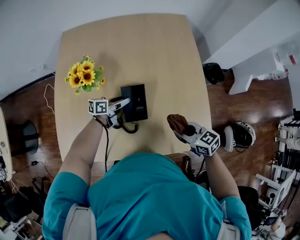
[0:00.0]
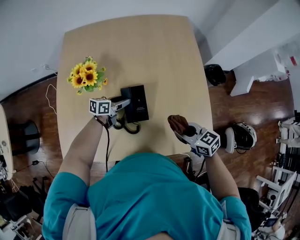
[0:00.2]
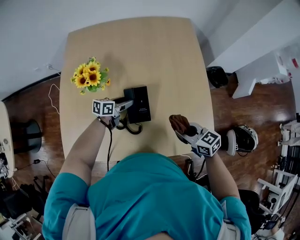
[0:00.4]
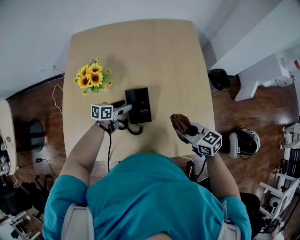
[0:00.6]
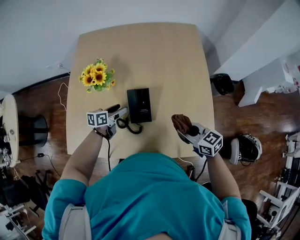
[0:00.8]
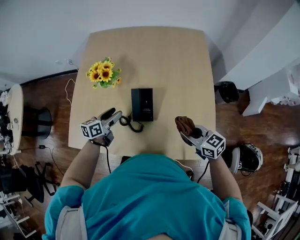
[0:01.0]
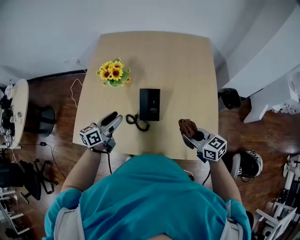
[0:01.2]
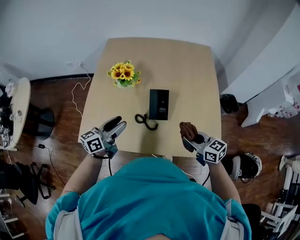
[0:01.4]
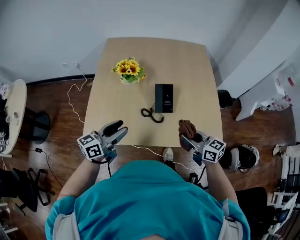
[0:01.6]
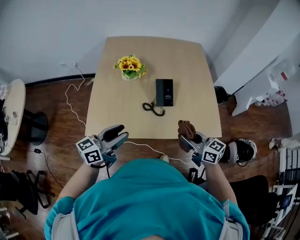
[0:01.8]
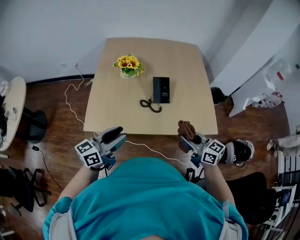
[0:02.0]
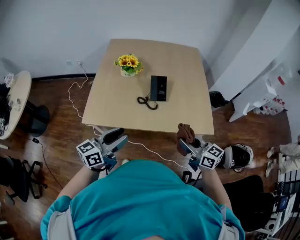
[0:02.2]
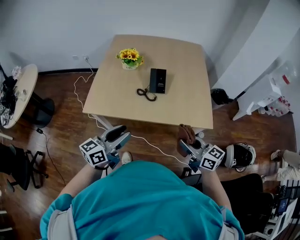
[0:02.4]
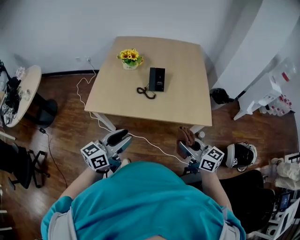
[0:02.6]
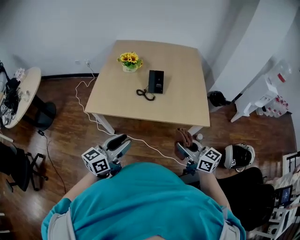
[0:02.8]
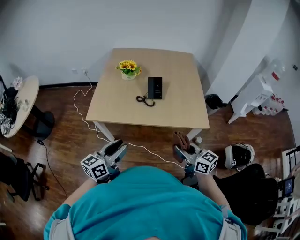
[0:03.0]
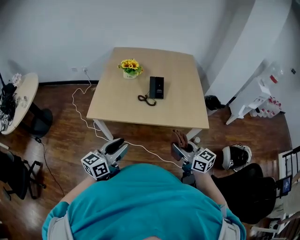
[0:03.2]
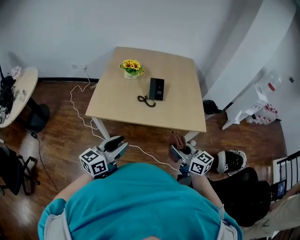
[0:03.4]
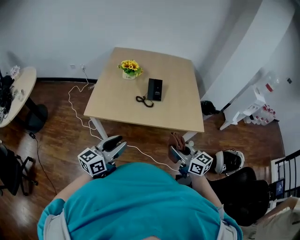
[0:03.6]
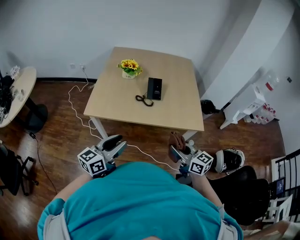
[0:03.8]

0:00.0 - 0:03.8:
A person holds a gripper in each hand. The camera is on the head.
0:00.0 - 0:01.2: The left gripper heads upward, backward and to the left, covering approximately 25 cm, and swivels about 30 degrees.
0:01.2 - 0:02.6: The grippers both shift backward by some 35 cm.
0:02.6 - 0:03.8: The grippers both shift to the left by approximately 5 cm.

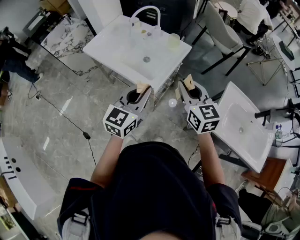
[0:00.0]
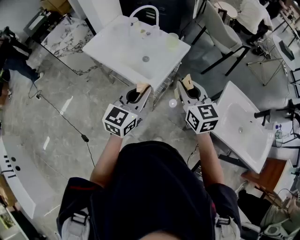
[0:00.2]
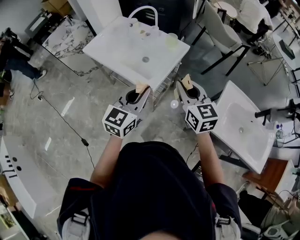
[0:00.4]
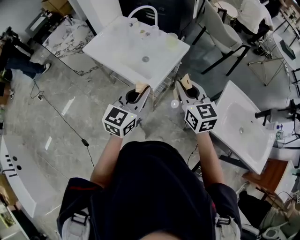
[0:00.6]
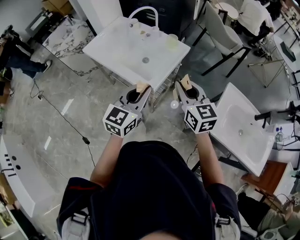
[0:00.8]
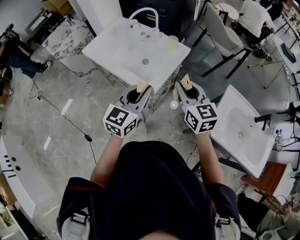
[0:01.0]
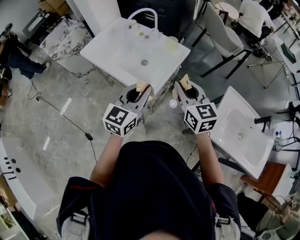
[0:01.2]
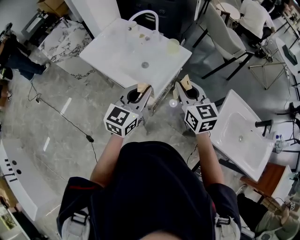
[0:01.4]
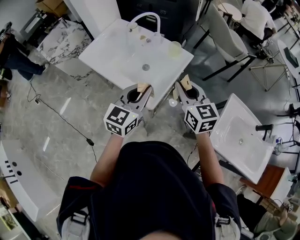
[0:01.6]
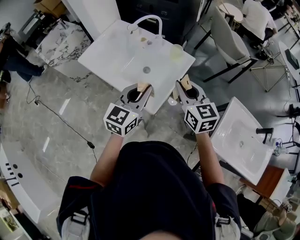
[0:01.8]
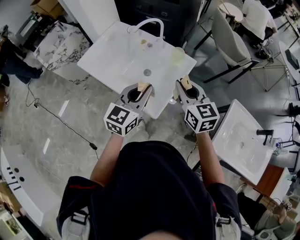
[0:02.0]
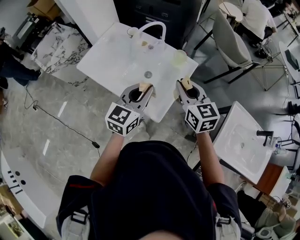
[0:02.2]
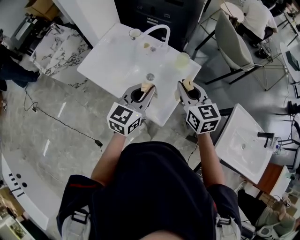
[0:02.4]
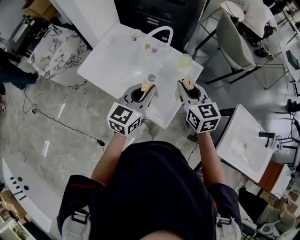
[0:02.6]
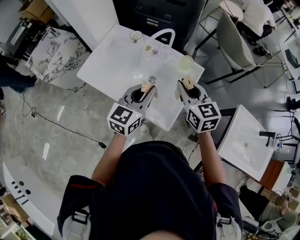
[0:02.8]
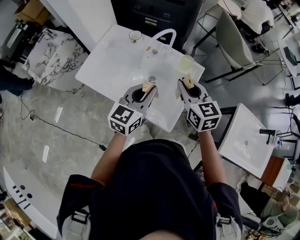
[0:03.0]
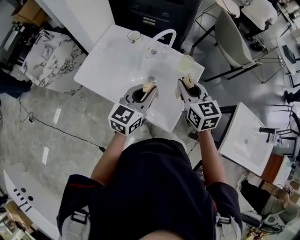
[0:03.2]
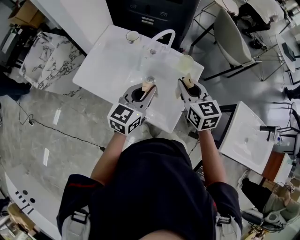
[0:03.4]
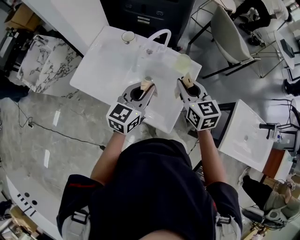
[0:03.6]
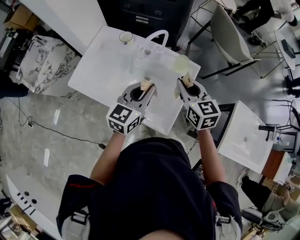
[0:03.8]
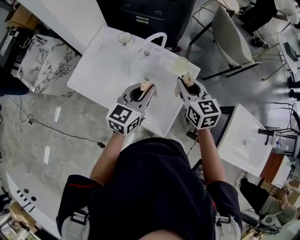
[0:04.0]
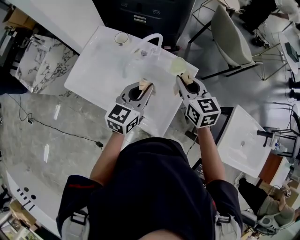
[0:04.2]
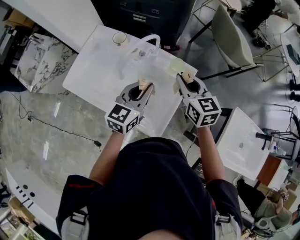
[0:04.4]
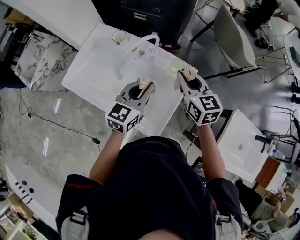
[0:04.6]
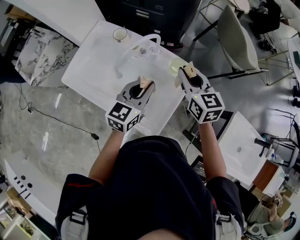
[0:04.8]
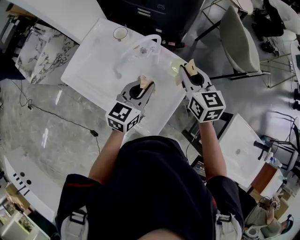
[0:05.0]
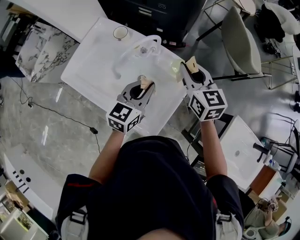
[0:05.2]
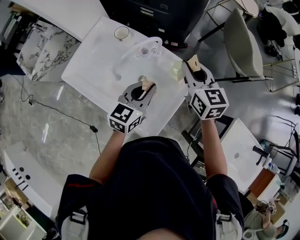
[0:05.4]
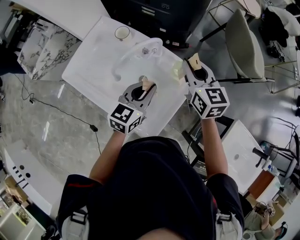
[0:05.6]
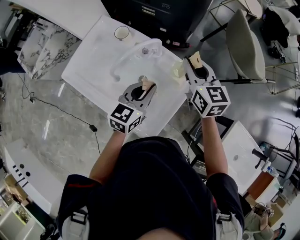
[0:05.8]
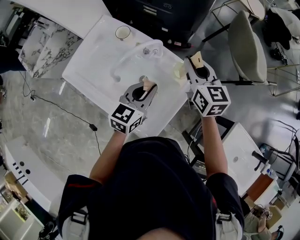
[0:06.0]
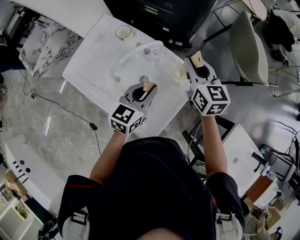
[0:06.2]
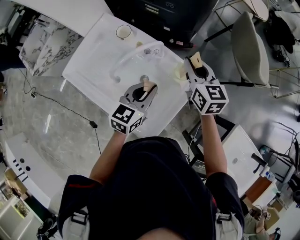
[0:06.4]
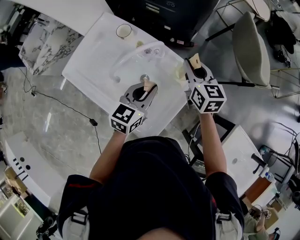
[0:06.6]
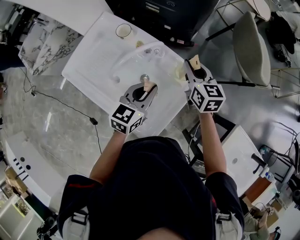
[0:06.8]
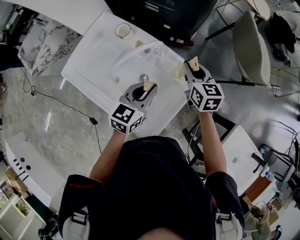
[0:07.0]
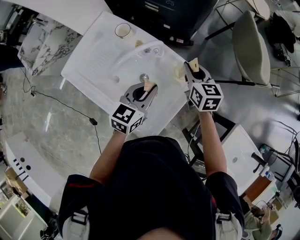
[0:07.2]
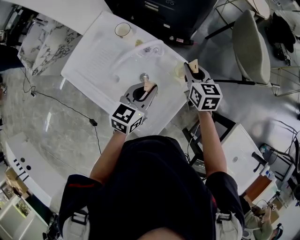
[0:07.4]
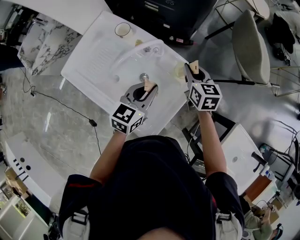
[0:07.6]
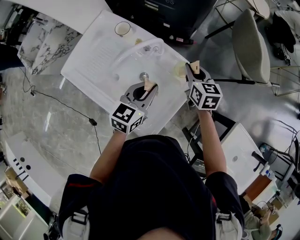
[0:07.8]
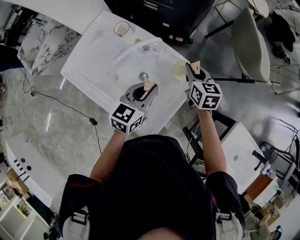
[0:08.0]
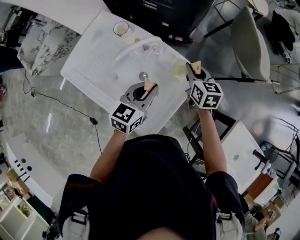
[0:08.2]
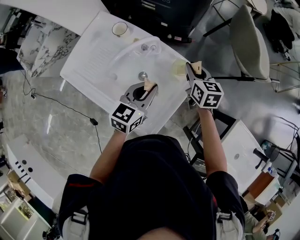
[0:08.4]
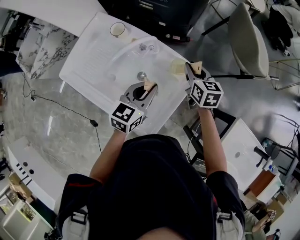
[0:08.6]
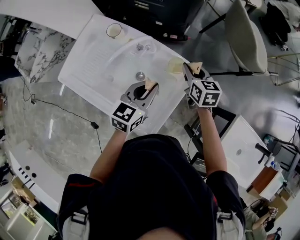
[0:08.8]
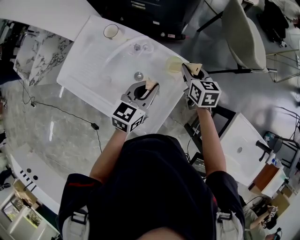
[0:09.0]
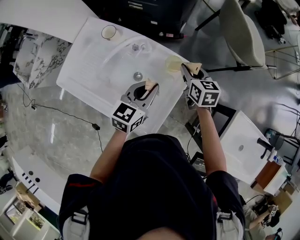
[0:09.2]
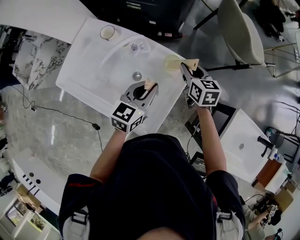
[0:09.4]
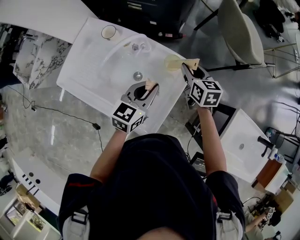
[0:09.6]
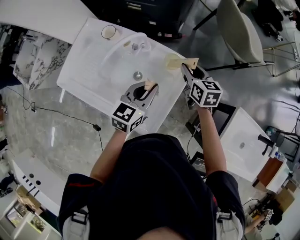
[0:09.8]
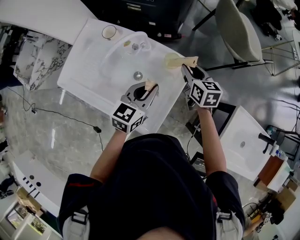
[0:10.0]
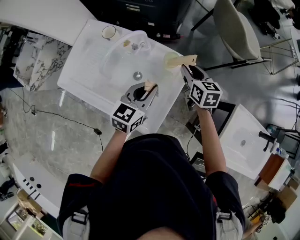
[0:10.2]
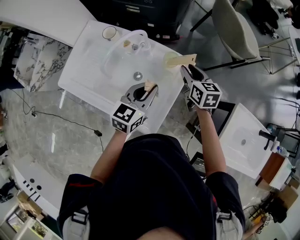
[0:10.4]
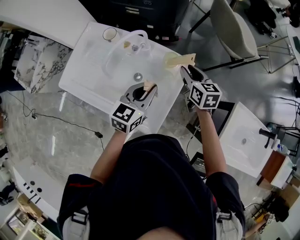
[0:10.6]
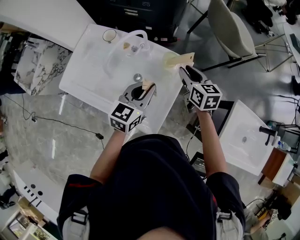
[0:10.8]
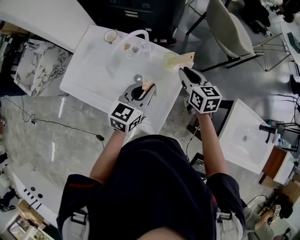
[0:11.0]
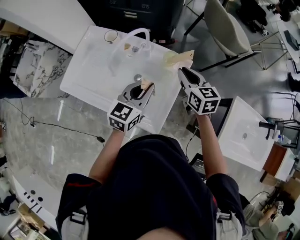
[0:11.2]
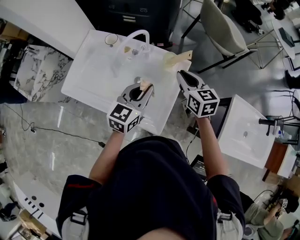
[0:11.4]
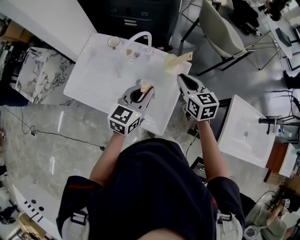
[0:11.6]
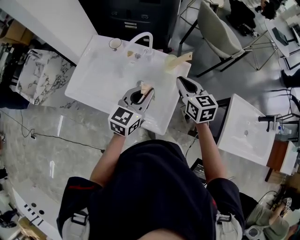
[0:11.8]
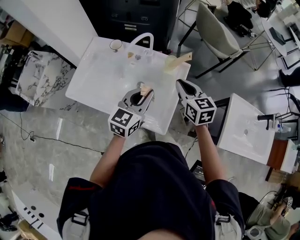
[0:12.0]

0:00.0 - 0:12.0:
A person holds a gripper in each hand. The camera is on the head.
0:00.0 - 0:01.6: Both grippers travel together forward, approximately 10 cm.
0:01.6 - 0:03.0: The grippers both shift forward and to the left by about 20 cm.
0:03.0 - 0:04.4: The right gripper moves forward and to the right, approximately 10 cm. Meanwhile the left gripper heads forward, covering roughly 10 cm.
0:04.4 - 0:06.0: The left gripper changes place by some 5 cm; the right gripper goes approximately 10 cm forward.
0:06.0 - 0:07.6: The right gripper shifts approximately 10 cm downward.
0:07.6 - 0:09.0: The grippers make only small movements.
0:09.0 - 0:10.4: The grippers move only a little.
0:10.4 - 0:12.0: The left gripper shifts some 10 cm backward, upward and to the left, while the right gripper shifts roughly 15 cm backward and upward, and closes up.

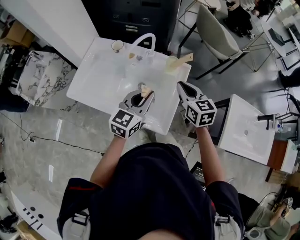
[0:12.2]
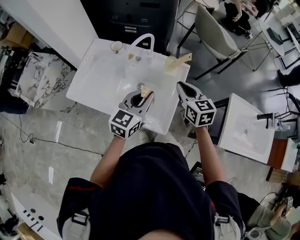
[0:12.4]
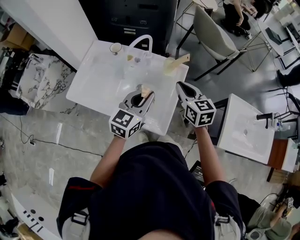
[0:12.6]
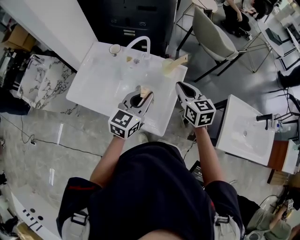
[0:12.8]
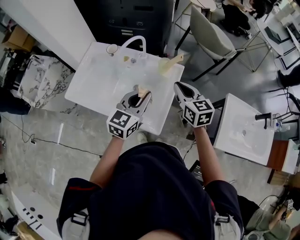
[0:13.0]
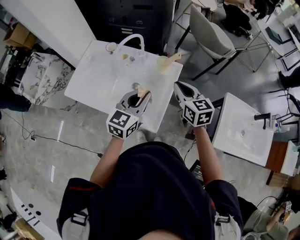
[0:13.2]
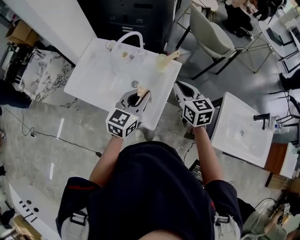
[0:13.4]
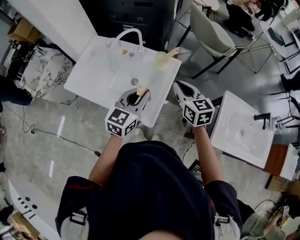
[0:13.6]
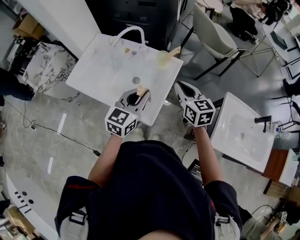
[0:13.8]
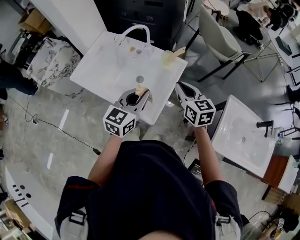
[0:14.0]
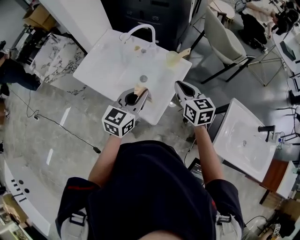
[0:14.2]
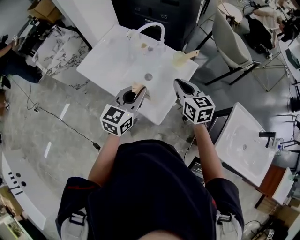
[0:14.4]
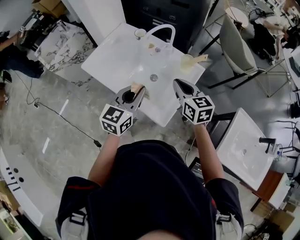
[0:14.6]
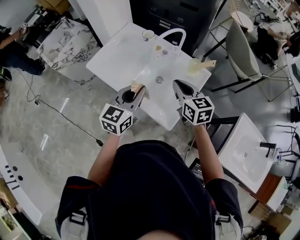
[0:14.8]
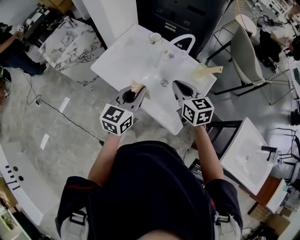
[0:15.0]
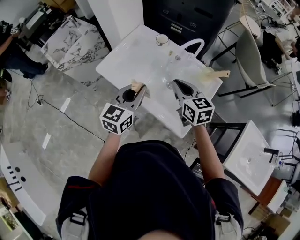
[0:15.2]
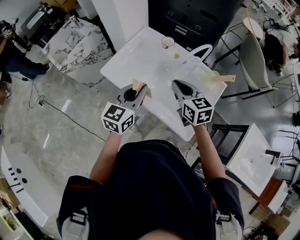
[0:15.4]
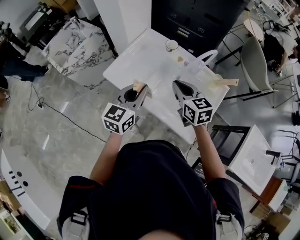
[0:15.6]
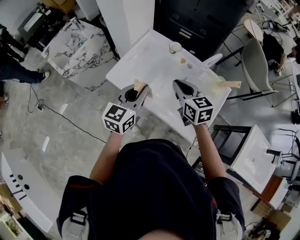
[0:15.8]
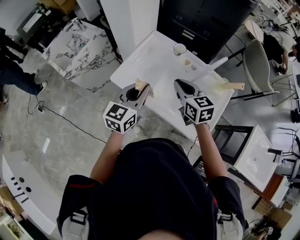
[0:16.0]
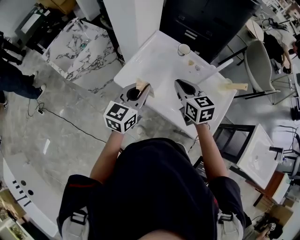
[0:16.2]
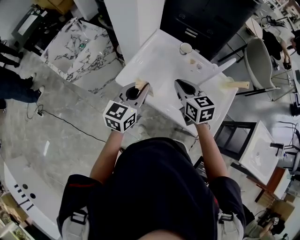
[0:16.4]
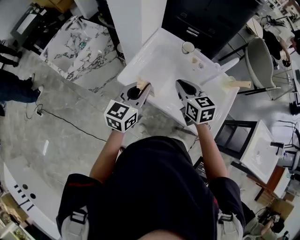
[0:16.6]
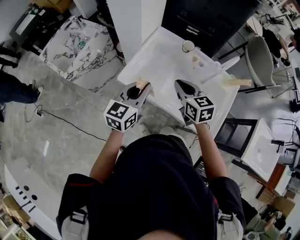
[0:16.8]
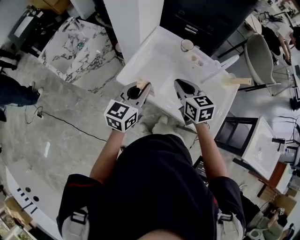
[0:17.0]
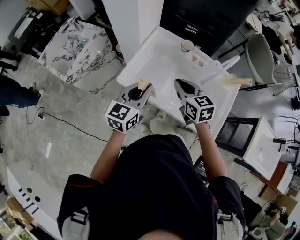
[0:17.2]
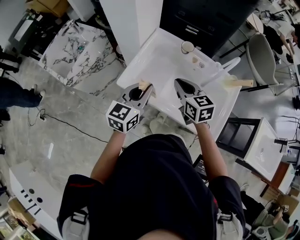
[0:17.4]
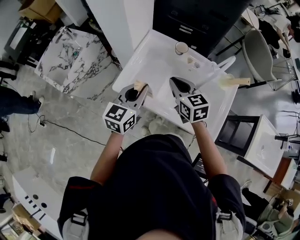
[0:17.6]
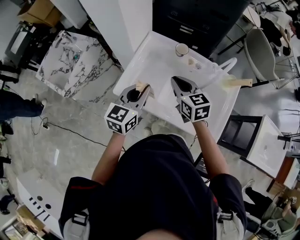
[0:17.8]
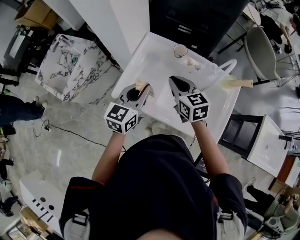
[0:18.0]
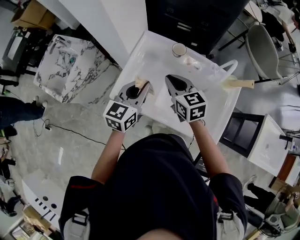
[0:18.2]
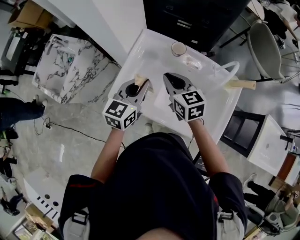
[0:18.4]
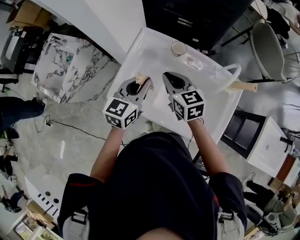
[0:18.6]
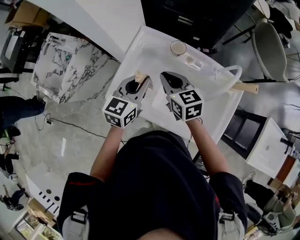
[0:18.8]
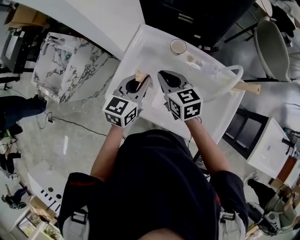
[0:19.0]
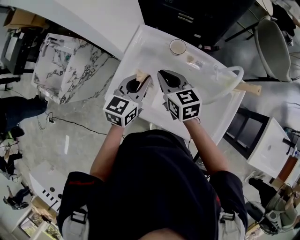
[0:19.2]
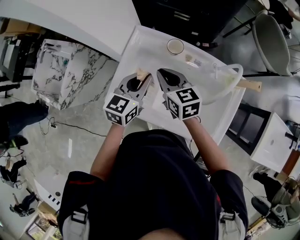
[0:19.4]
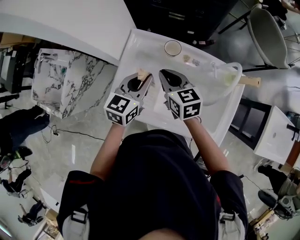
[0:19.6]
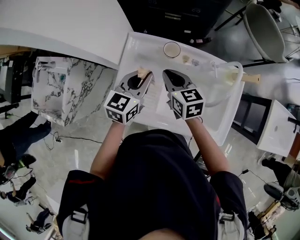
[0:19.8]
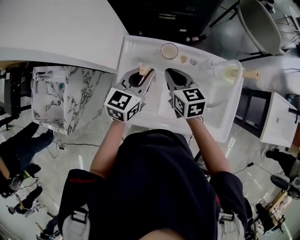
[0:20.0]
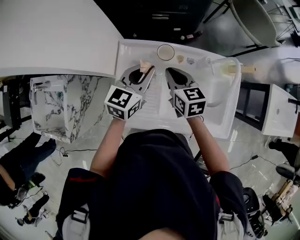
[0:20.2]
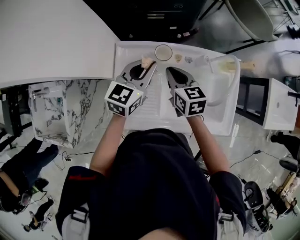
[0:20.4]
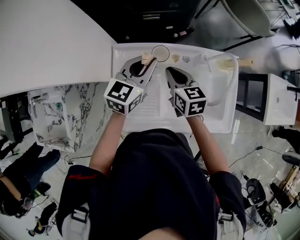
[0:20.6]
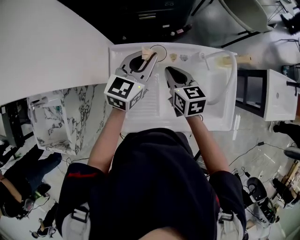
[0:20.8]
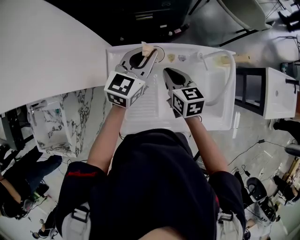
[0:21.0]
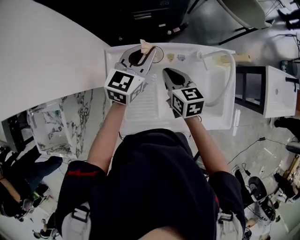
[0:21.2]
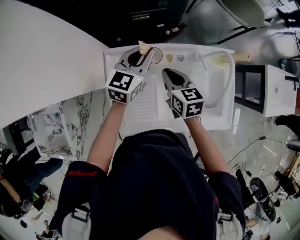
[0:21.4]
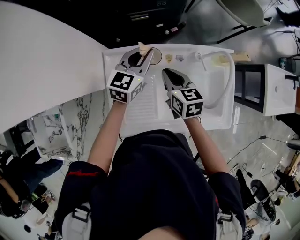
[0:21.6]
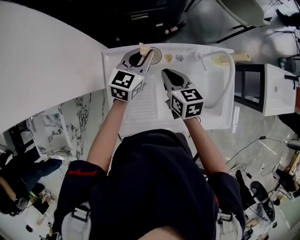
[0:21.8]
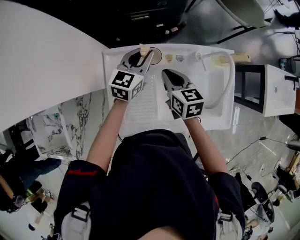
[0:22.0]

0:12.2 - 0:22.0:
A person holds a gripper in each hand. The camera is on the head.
0:12.2 - 0:13.6: Both grippers travel together to the right, some 5 cm.
0:13.6 - 0:15.0: Both grippers move to the left, roughly 20 cm.
0:15.0 - 0:16.4: The right gripper heads to the left, covering approximately 20 cm, while the left gripper shifts approximately 20 cm to the left and forward.
0:16.4 - 0:17.8: The two grippers go about 5 cm forward.
0:17.8 - 0:19.2: The grippers both shift forward by some 10 cm.
0:19.2 - 0:20.6: The left gripper changes place by roughly 15 cm, and swivels some 30 degrees. Meanwhile the right gripper ends up about 10 cm from where it was, and changes its angle by approximately 30 degrees.
0:20.6 - 0:22.0: The left gripper is displaced downward and forward by approximately 10 cm.
